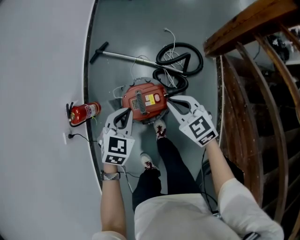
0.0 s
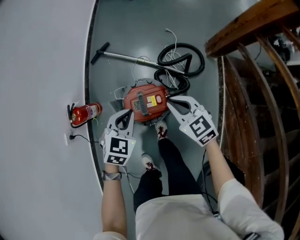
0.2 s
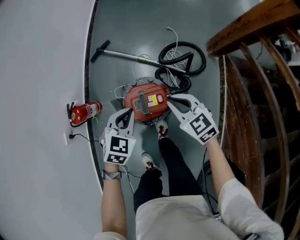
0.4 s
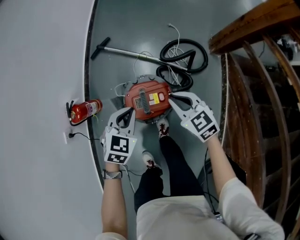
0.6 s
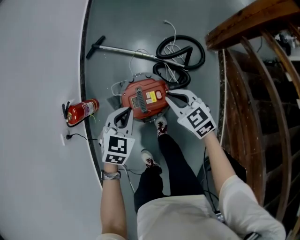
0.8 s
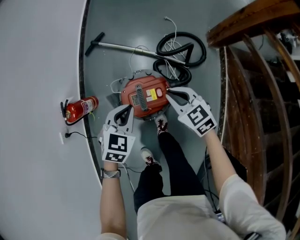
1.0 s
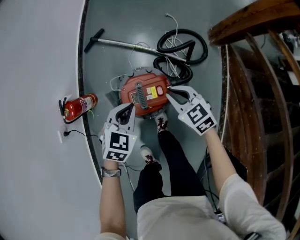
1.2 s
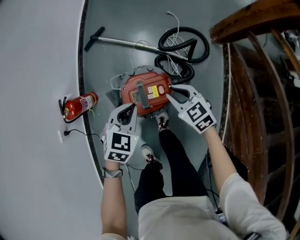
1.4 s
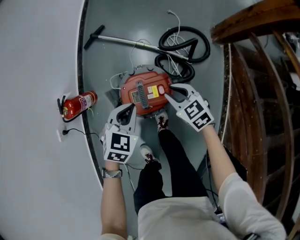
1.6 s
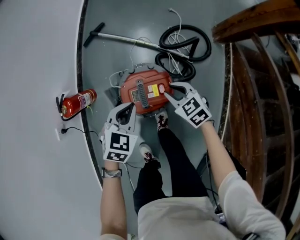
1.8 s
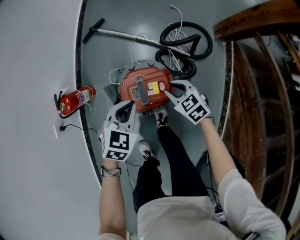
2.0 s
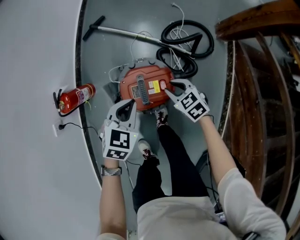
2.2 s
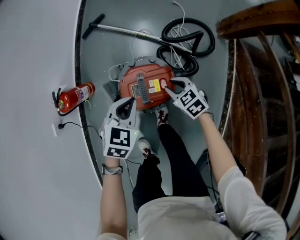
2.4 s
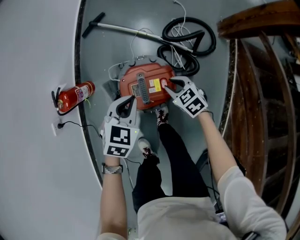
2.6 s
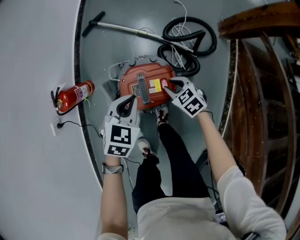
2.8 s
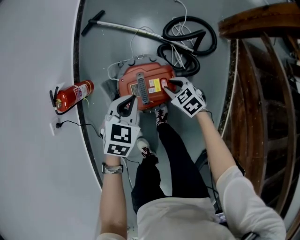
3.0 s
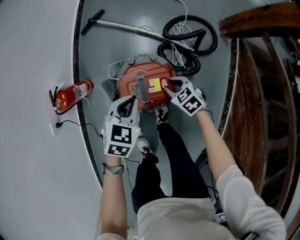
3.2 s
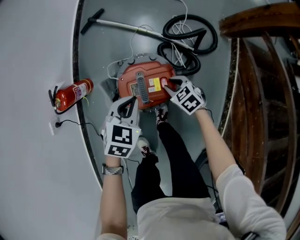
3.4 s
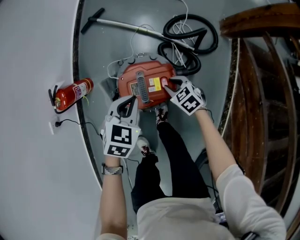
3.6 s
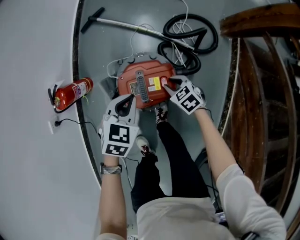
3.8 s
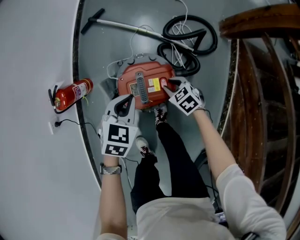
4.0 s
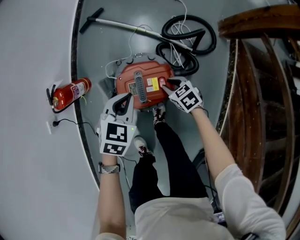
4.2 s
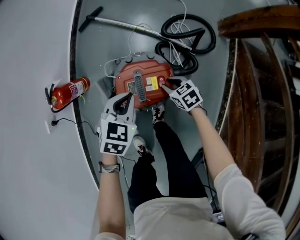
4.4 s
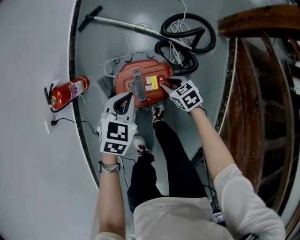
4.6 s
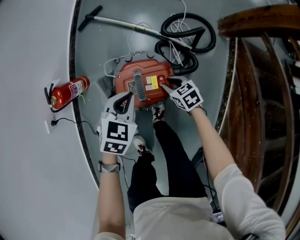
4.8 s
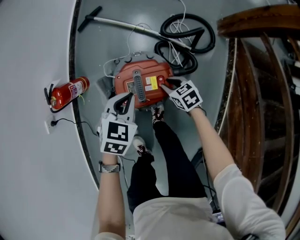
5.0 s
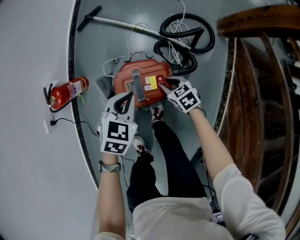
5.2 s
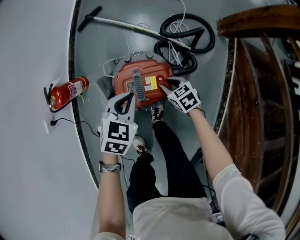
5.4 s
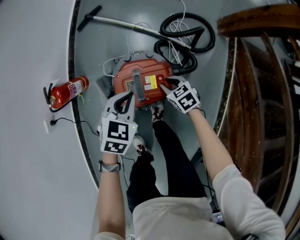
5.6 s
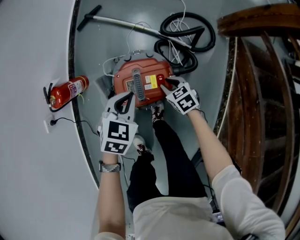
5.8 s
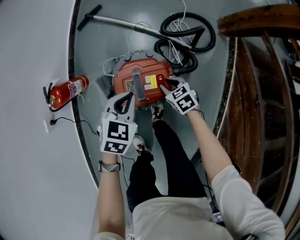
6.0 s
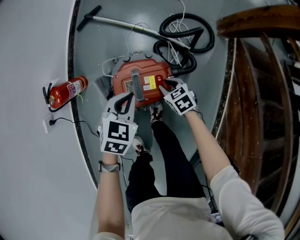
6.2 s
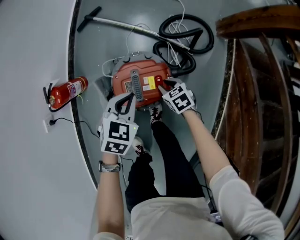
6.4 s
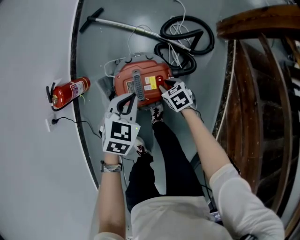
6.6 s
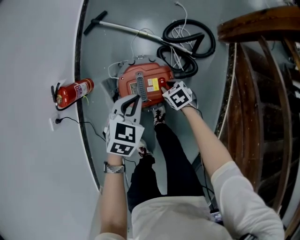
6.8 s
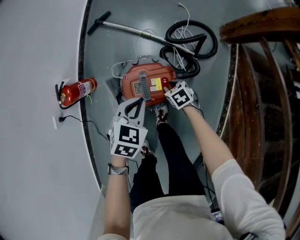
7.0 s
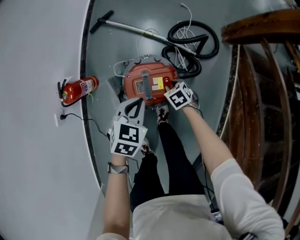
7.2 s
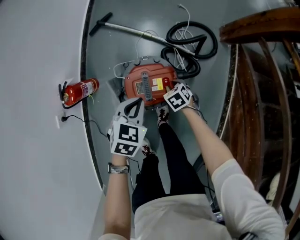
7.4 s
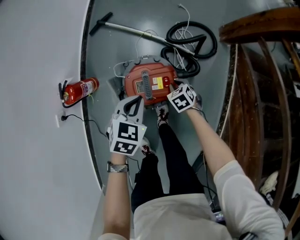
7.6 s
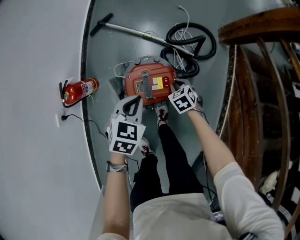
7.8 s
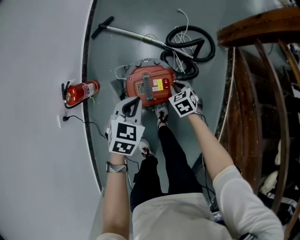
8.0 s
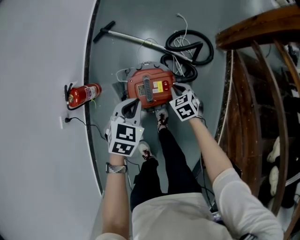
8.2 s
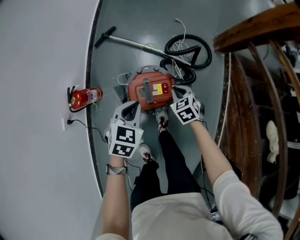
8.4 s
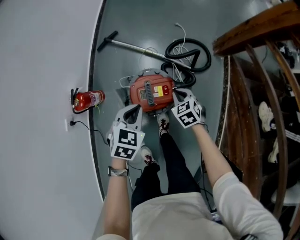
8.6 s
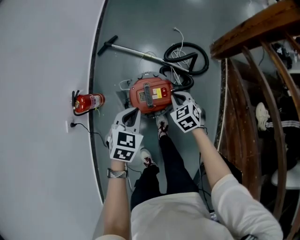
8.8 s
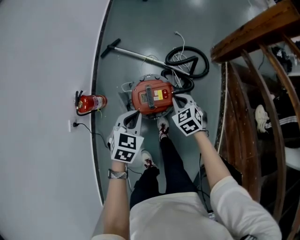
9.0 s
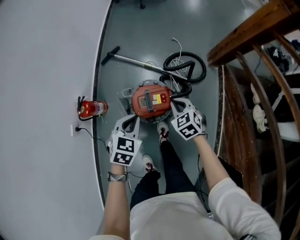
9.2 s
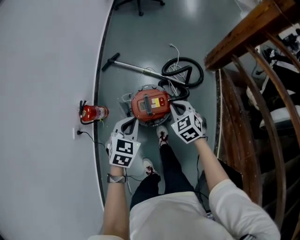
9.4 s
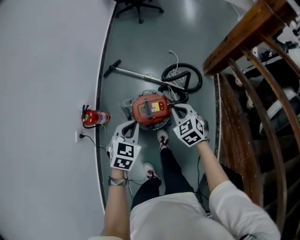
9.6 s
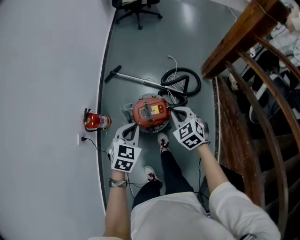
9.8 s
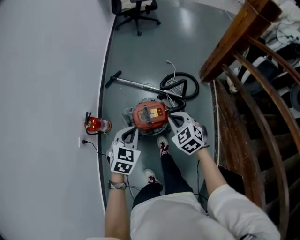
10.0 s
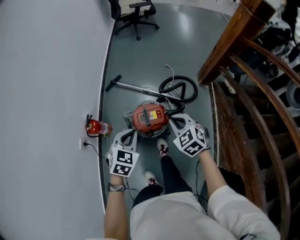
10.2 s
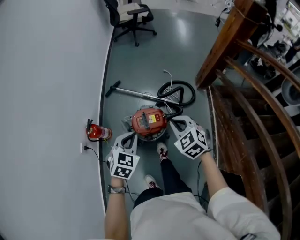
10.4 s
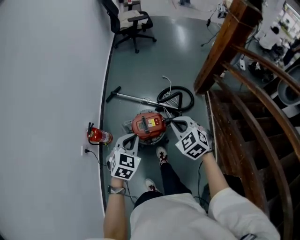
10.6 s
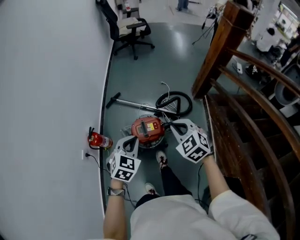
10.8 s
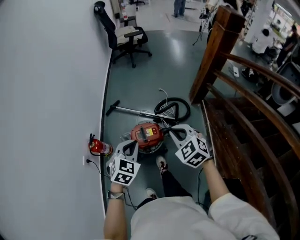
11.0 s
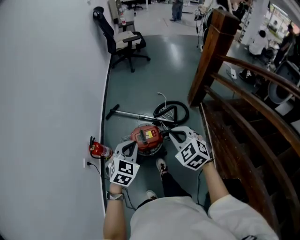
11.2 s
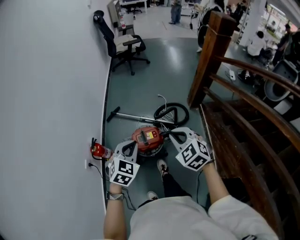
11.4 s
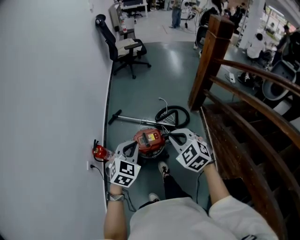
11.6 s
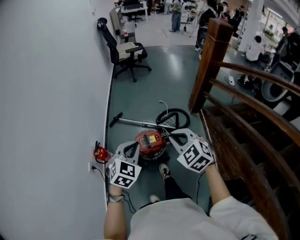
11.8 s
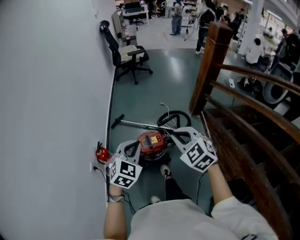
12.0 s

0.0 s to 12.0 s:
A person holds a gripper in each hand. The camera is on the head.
0.0 to 1.6 s: The left gripper shifts roughly 10 cm downward. Meanwhile the right gripper travels downward by about 15 cm, and opens its fingers.
1.6 to 3.0 s: The right gripper moves downward, approximately 15 cm, while the left gripper shifts by about 5 cm.
3.0 to 6.0 s: The grippers move only a little.
6.0 to 7.6 s: The left gripper is displaced upward by approximately 5 cm.
7.6 to 9.0 s: The right gripper heads upward, covering some 20 cm, while the left gripper travels upward by about 10 cm.
9.0 to 10.4 s: The right gripper shifts about 25 cm upward, while the left gripper goes about 15 cm upward and backward.
10.4 to 12.0 s: The two grippers go some 20 cm upward and backward. The left gripper changes its angle by roughly 20 degrees.

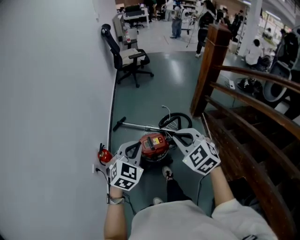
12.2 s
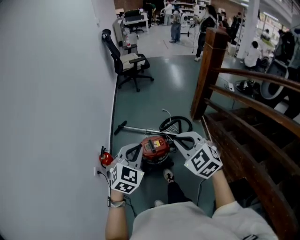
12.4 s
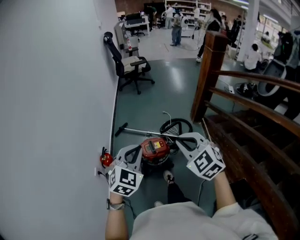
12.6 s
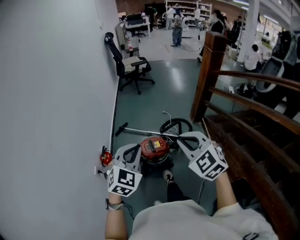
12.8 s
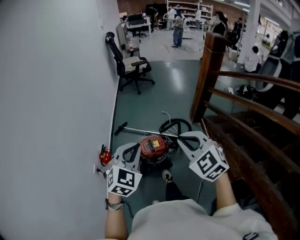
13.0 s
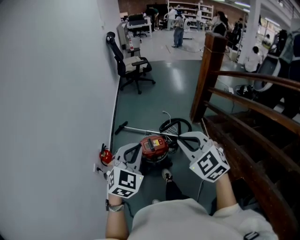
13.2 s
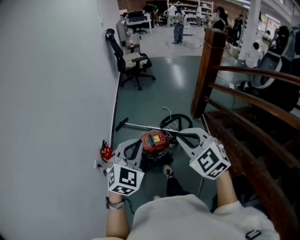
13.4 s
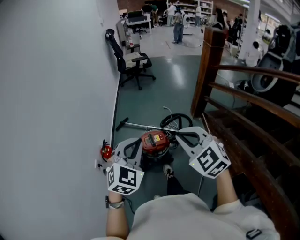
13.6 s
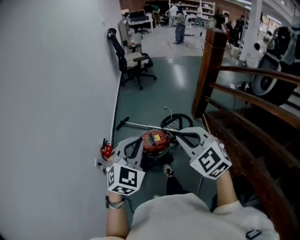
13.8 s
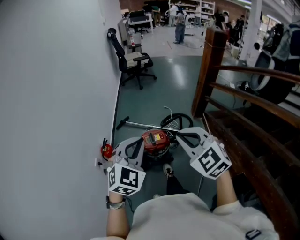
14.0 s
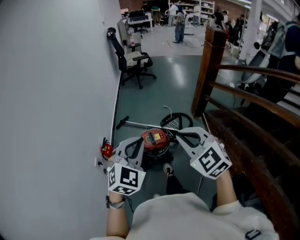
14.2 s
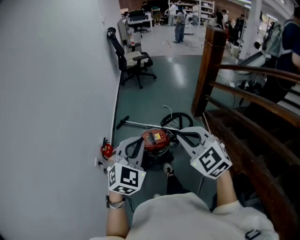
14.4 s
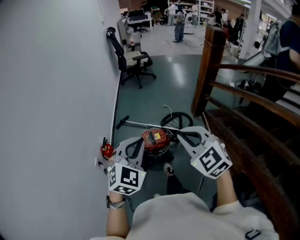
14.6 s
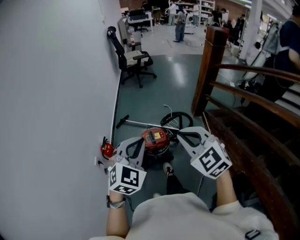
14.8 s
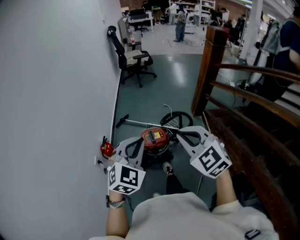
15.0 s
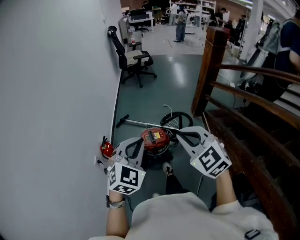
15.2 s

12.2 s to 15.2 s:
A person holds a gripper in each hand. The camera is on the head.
12.2 to 13.8 s: The two grippers go about 15 cm backward and upward.
13.8 to 15.2 s: The grippers stay close to where they were, moving slightly.

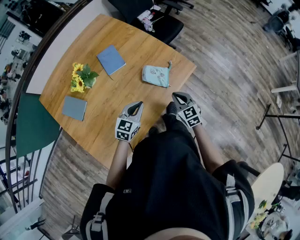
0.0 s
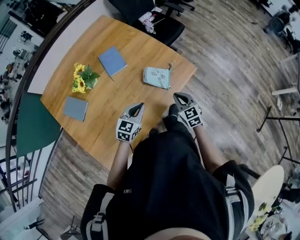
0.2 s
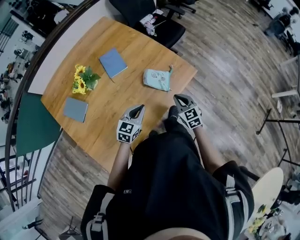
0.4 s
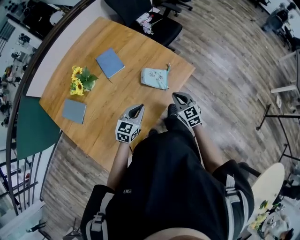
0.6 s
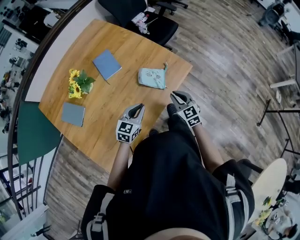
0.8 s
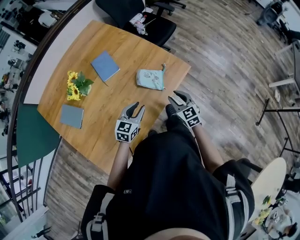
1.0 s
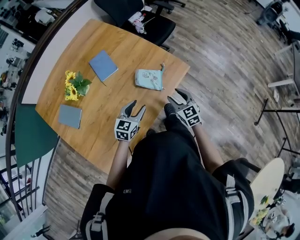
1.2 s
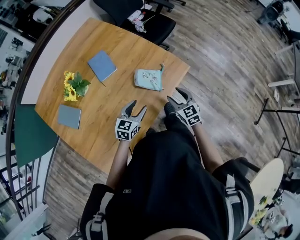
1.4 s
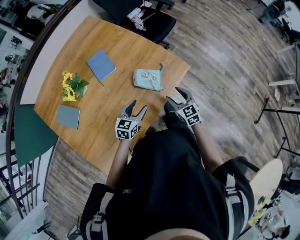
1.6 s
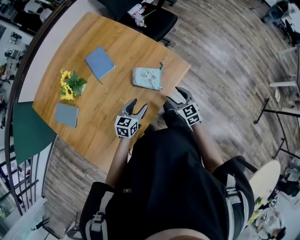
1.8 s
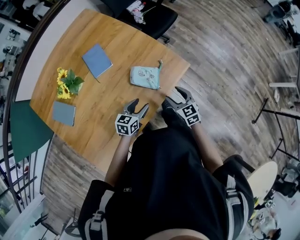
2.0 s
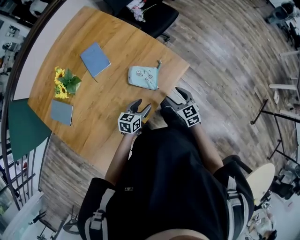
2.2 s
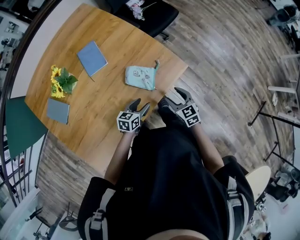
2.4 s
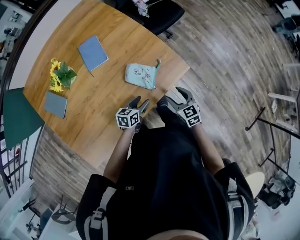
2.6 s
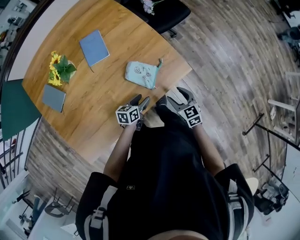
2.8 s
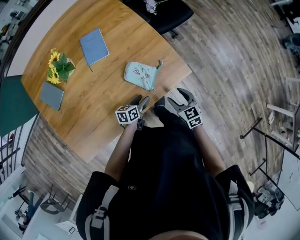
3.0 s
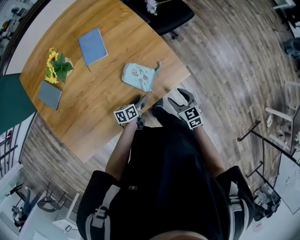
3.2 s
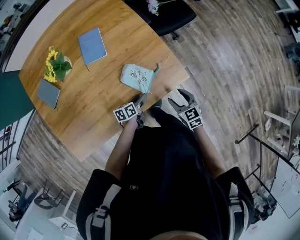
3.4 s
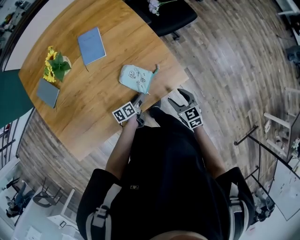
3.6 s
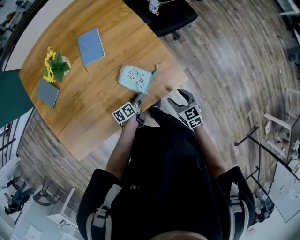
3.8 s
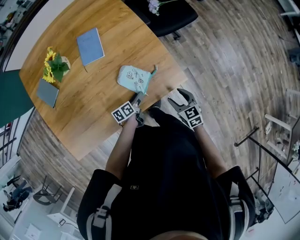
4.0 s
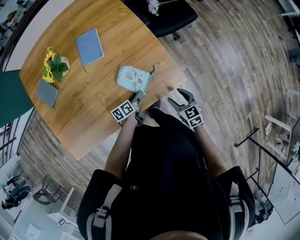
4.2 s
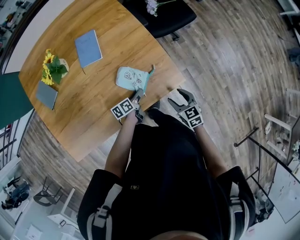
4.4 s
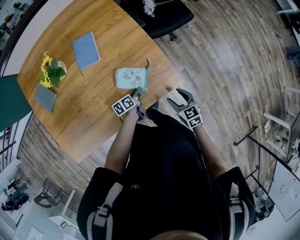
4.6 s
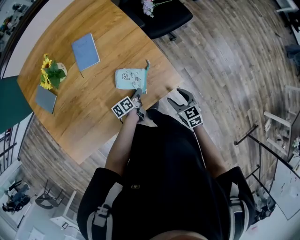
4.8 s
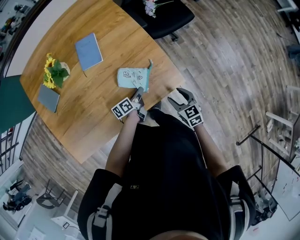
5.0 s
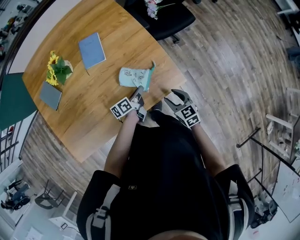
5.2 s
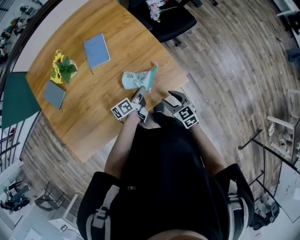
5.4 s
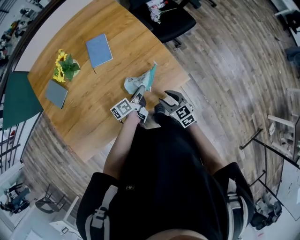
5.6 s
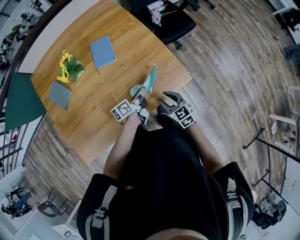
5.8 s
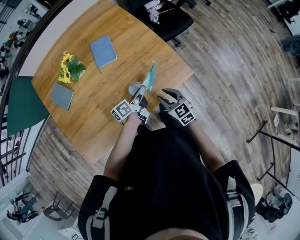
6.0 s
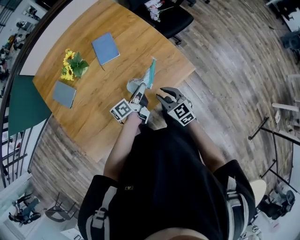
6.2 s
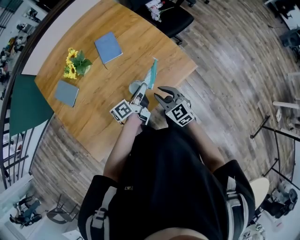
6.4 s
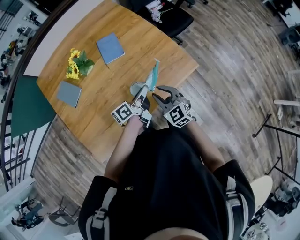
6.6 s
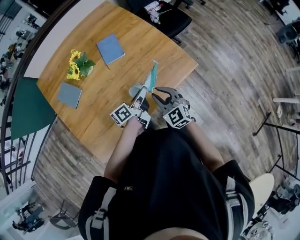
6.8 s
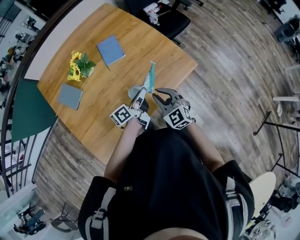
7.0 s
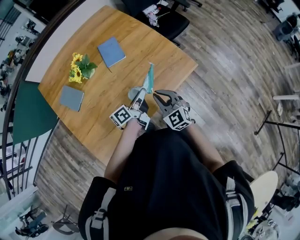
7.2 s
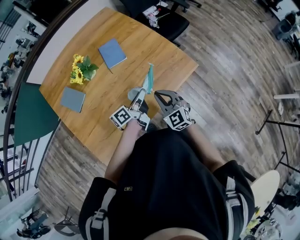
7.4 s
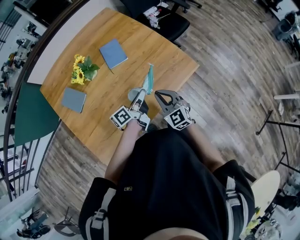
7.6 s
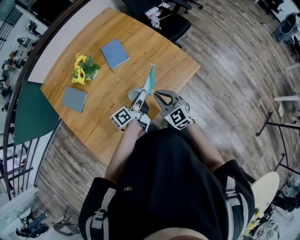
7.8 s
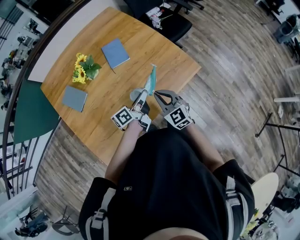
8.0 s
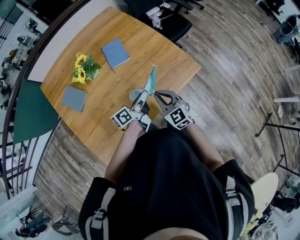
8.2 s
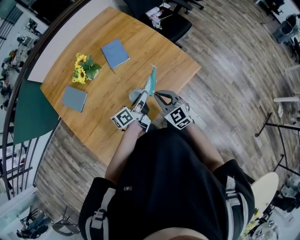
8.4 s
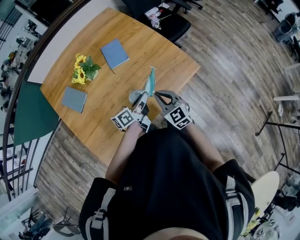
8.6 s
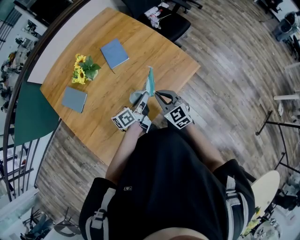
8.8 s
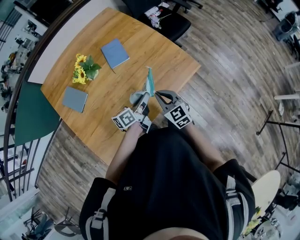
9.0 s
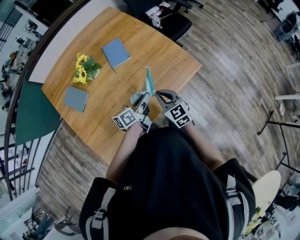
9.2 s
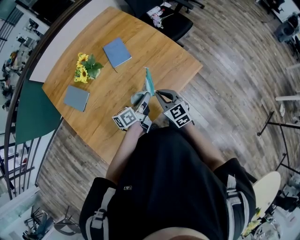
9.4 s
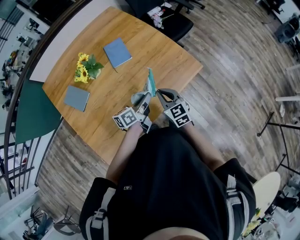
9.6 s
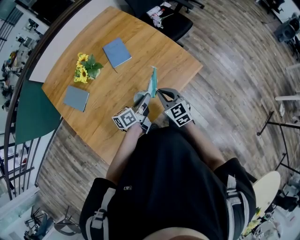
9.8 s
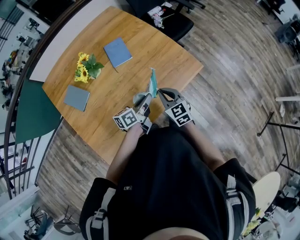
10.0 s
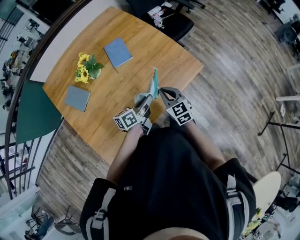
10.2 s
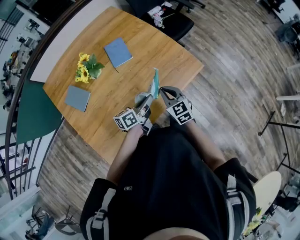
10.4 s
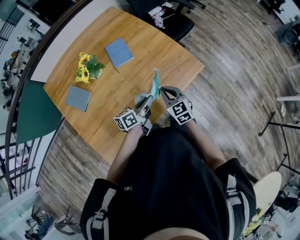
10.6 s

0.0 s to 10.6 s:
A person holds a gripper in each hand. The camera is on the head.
0.0 to 1.6 s: The right gripper moves about 5 cm, and opens up. The left gripper moves about 5 cm, and opens.
1.6 to 3.0 s: The right gripper shifts approximately 10 cm to the right and downward, while the left gripper heads downward and to the right, covering approximately 15 cm, and rolls counterclockwise, seen from behind, by roughly 40 degrees.
3.0 to 4.6 s: The right gripper shifts roughly 5 cm to the right. The left gripper goes approximately 10 cm forward, changes its angle by approximately 30 degrees, and closes up.
4.6 to 6.0 s: The right gripper shifts approximately 20 cm to the left and upward, and closes up. Meanwhile the left gripper heads upward and to the left, covering approximately 20 cm, and changes its angle by approximately 30 degrees.
6.0 to 7.6 s: The left gripper goes about 15 cm to the left, upward and backward. Meanwhile the right gripper goes approximately 15 cm to the left and upward, changes its angle by some 20 degrees, and closes its fingers.
7.6 to 10.6 s: The grippers stay close to where they were, moving slightly.
